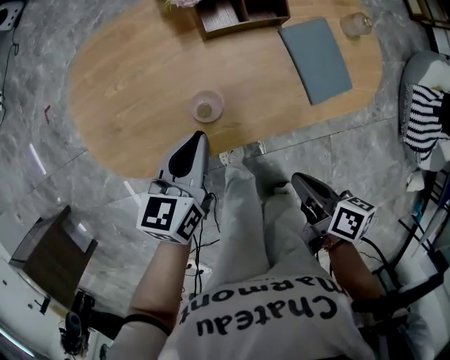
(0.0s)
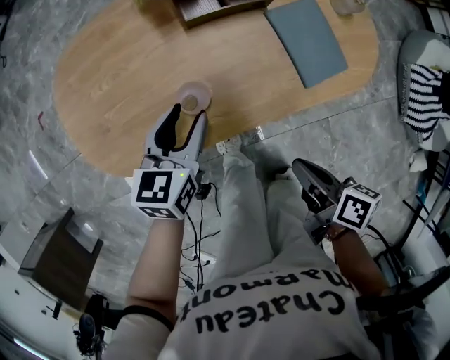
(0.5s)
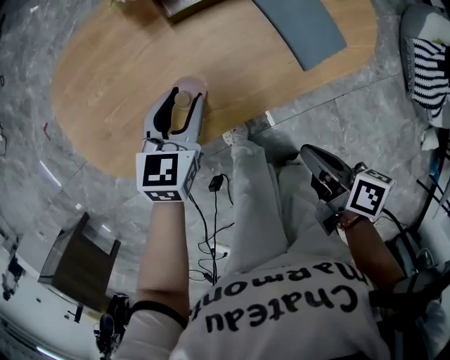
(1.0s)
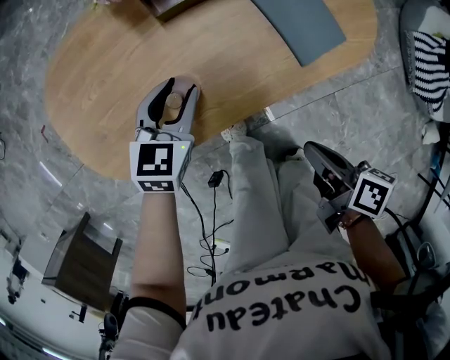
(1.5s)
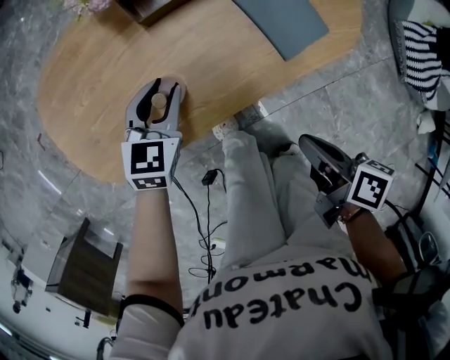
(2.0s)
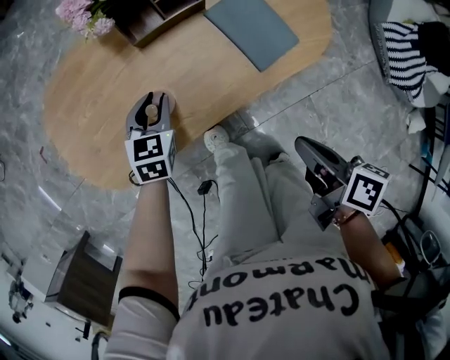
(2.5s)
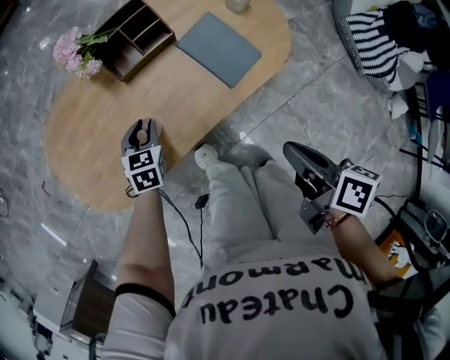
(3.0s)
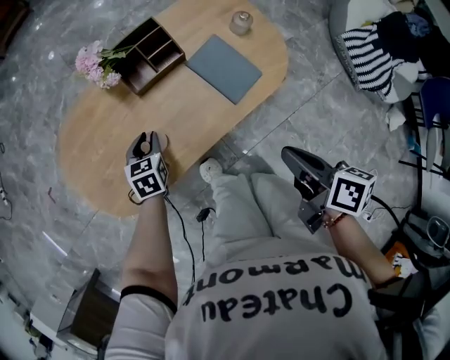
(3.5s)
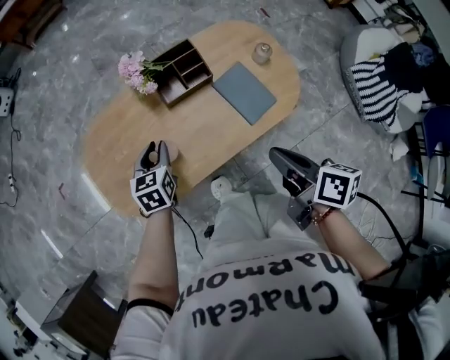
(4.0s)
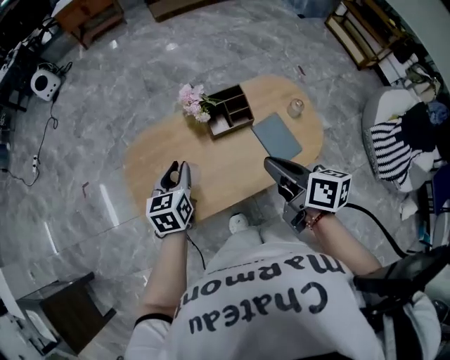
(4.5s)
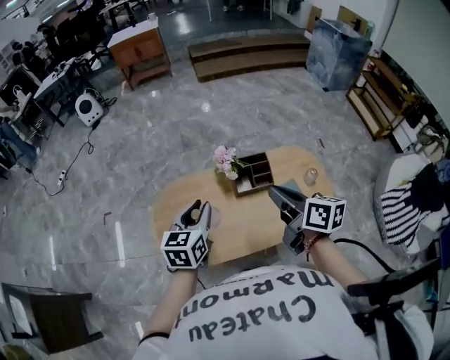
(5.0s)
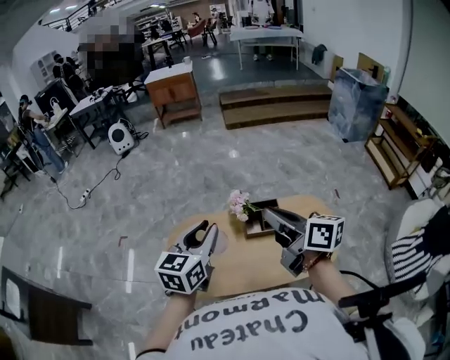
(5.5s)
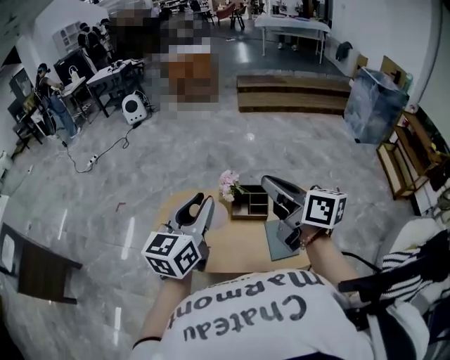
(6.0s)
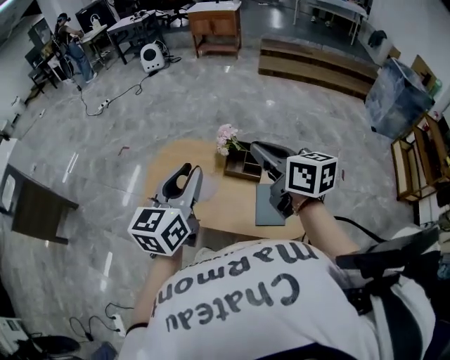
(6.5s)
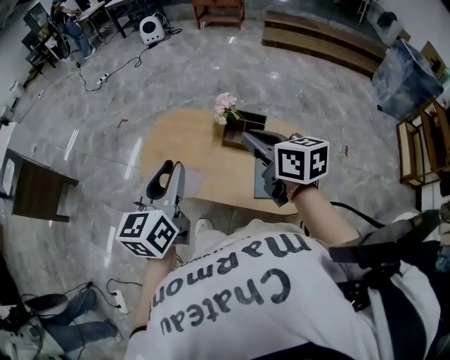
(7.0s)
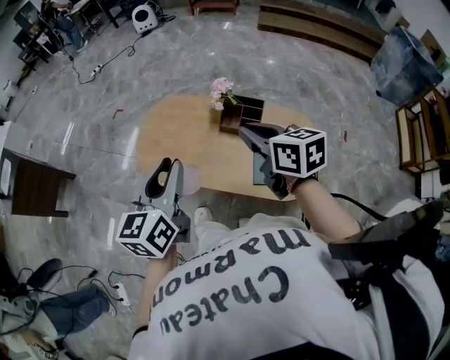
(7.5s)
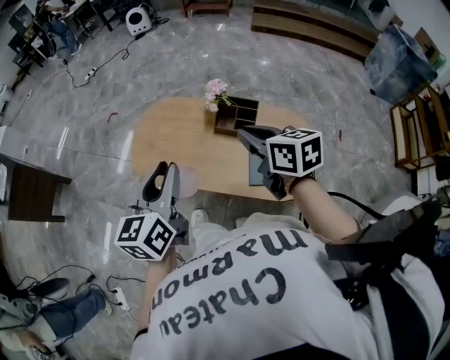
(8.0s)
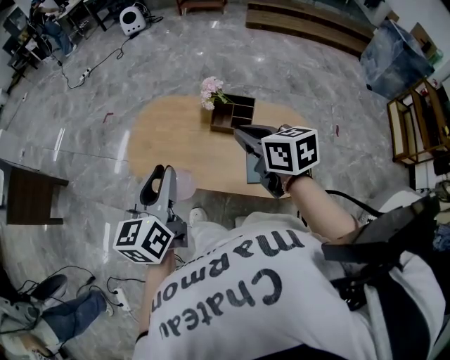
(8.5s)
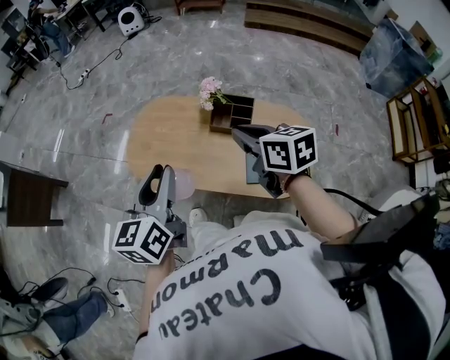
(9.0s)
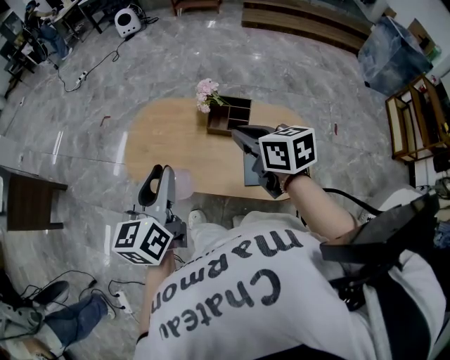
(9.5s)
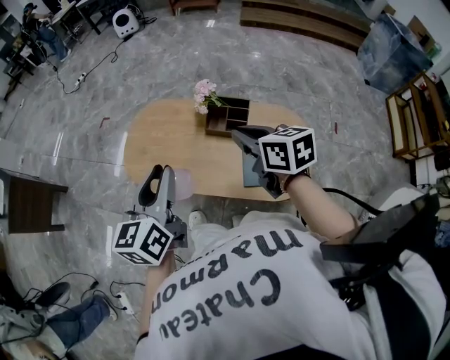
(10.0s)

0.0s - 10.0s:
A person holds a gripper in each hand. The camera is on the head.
0.0s - 2.0s: The left gripper travels downward and forward by roughly 10 cm, turns by about 30 degrees, and opens its fingers.
2.0s - 4.0s: The right gripper shifts approximately 20 cm upward, while the left gripper goes about 15 cm upward and to the left, and changes its angle by approximately 20 degrees.
4.0s - 6.0s: The left gripper heads upward, covering some 40 cm, and points its fingers some 40 degrees further upward. Meanwhile the right gripper moves upward and forward, approximately 30 cm, and swivels some 50 degrees.
6.0s - 8.0s: The left gripper moves backward and downward, approximately 15 cm, and rotates some 30 degrees. Meanwhile the right gripper is displaced downward and backward by some 15 cm, and changes its angle by about 30 degrees.
8.0s - 10.0s: The grippers move only a little.

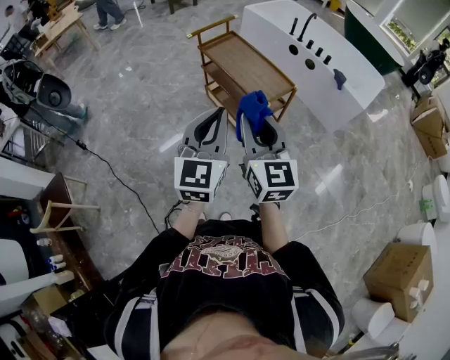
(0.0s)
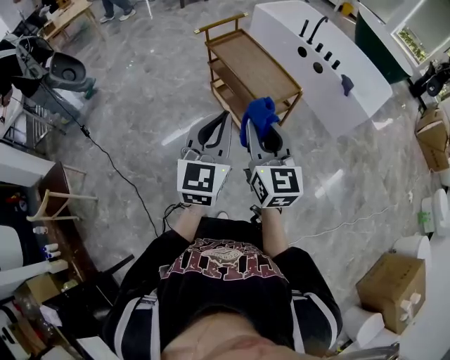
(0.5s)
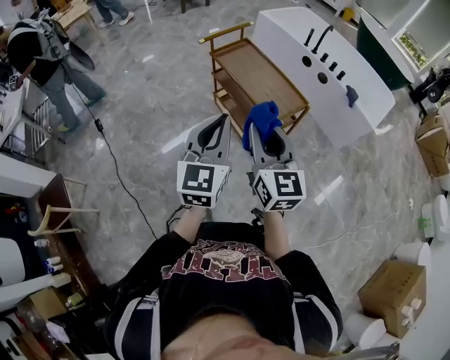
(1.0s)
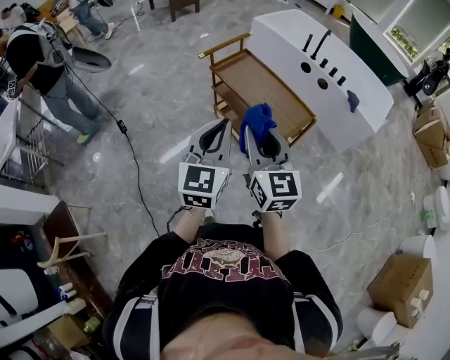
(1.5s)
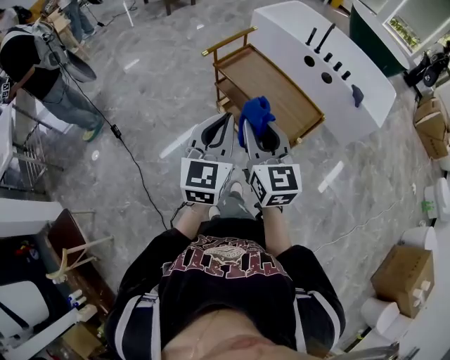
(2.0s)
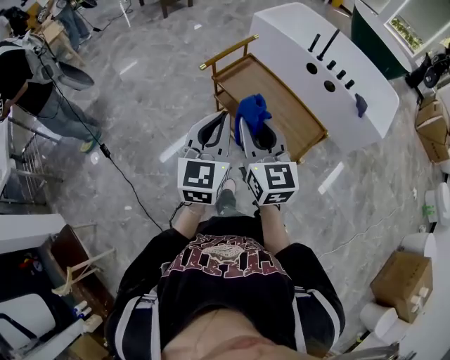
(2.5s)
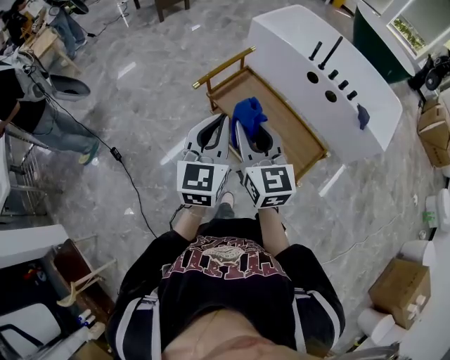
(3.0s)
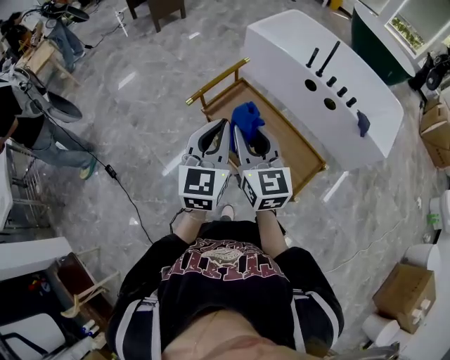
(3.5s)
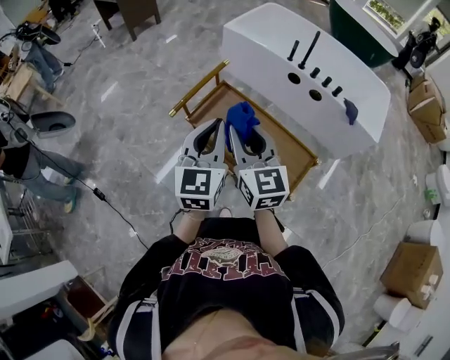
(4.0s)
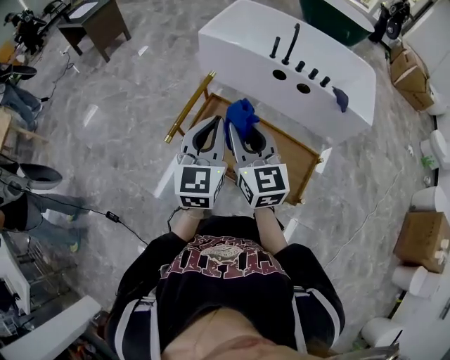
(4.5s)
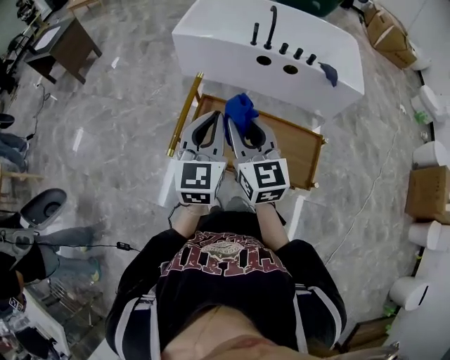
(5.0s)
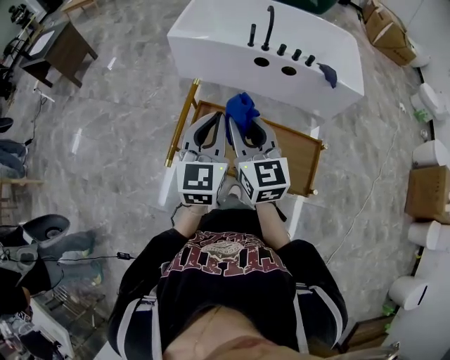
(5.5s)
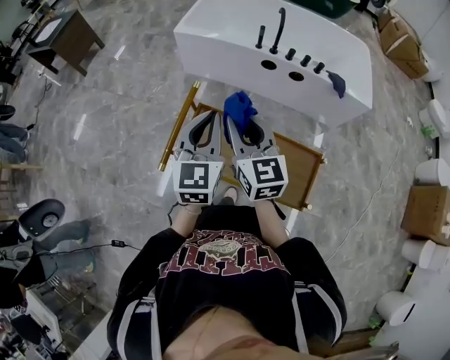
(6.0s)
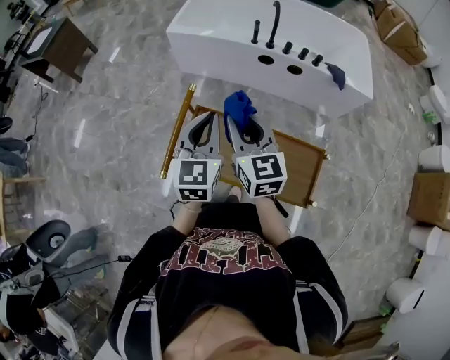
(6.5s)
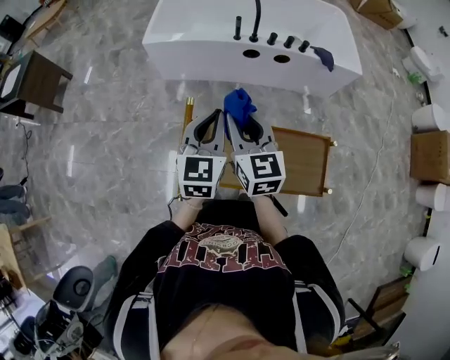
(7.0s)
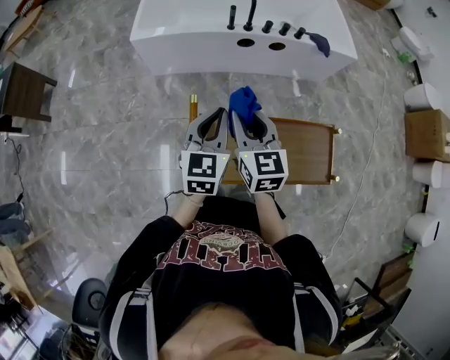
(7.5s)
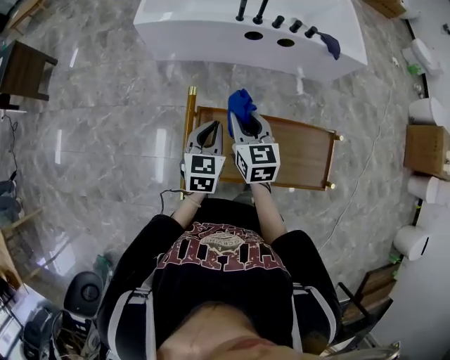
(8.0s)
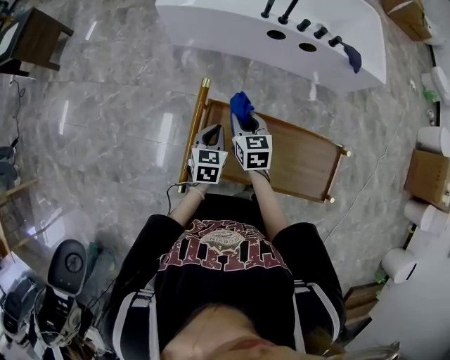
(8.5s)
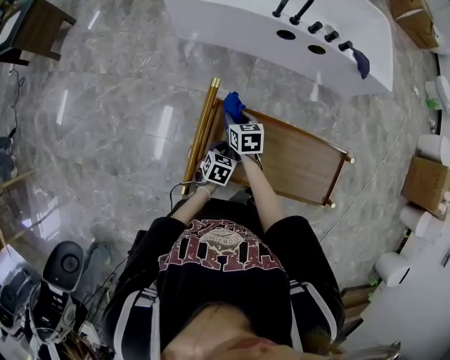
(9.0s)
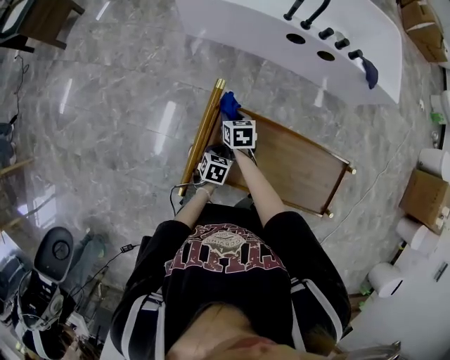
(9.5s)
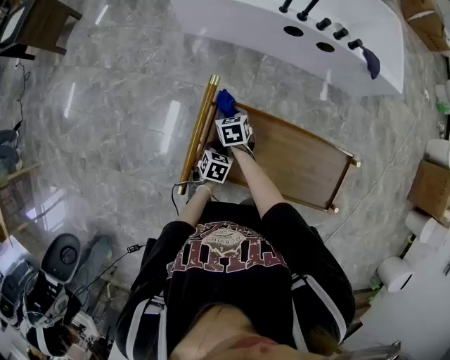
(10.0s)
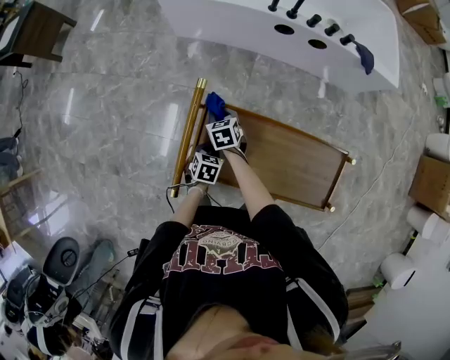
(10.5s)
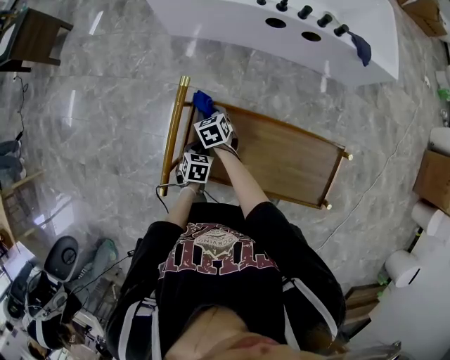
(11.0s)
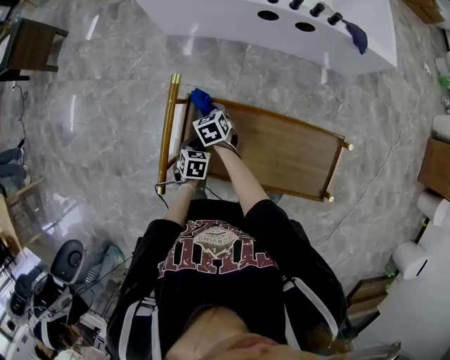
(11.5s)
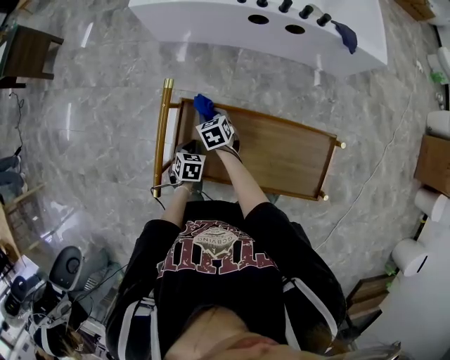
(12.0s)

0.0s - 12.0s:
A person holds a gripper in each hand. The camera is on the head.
0.0s - 2.0s: Both grippers travel together forward and to the left, roughly 30 cm.
2.0s - 4.0s: Both grippers travel together forward, some 35 cm.
4.0s - 6.0s: Both grippers move forward, roughly 25 cm.
6.0s - 8.0s: Both grippers travel together downward and forward, approximately 20 cm. The right gripper turns by about 30 degrees; the left gripper turns by some 30 degrees.
8.0s - 10.0s: The two grippers go roughly 25 cm downward. The right gripper swivels some 30 degrees. The left gripper turns by some 30 degrees.
10.0s - 12.0s: The right gripper is displaced to the right by about 5 cm.

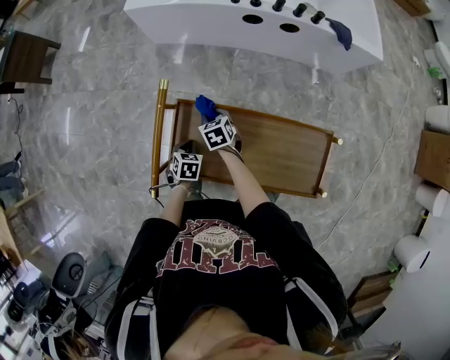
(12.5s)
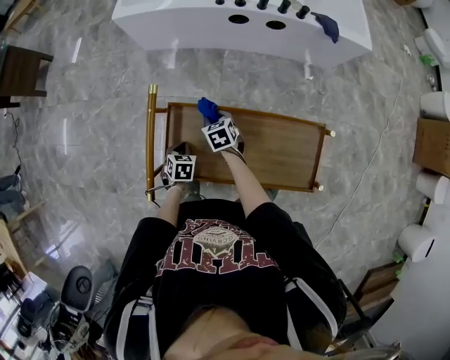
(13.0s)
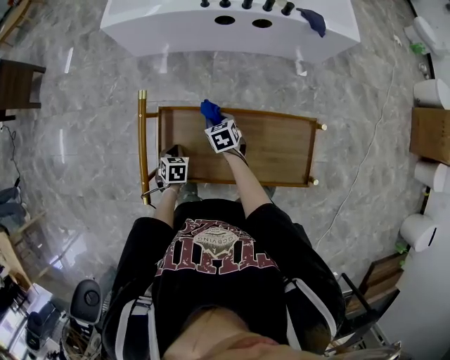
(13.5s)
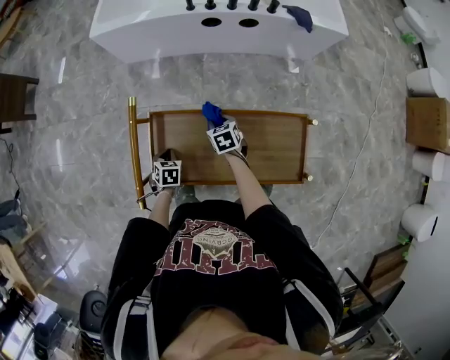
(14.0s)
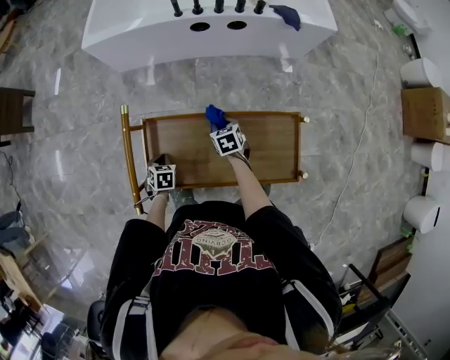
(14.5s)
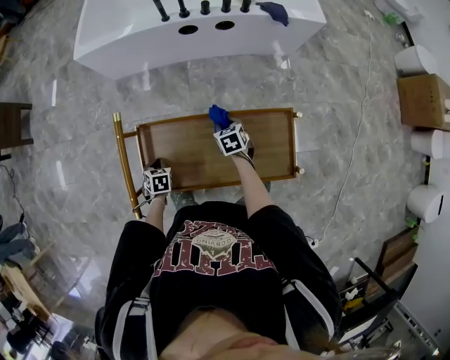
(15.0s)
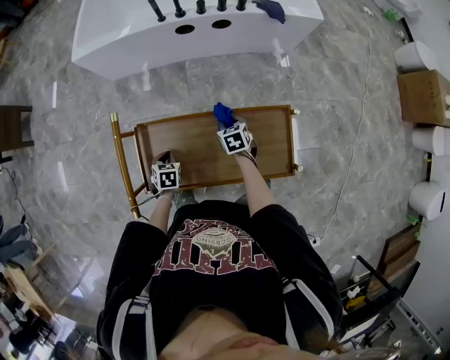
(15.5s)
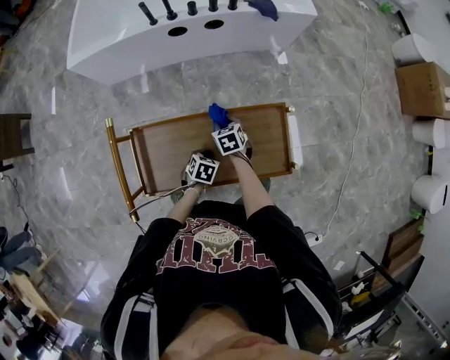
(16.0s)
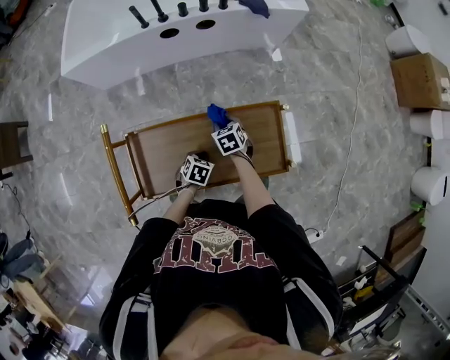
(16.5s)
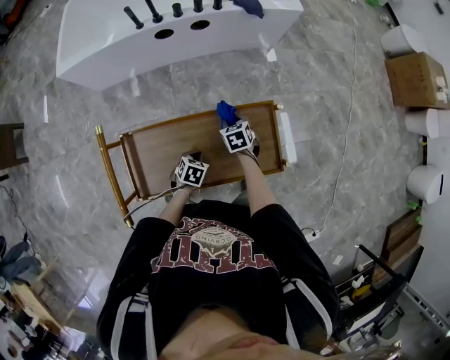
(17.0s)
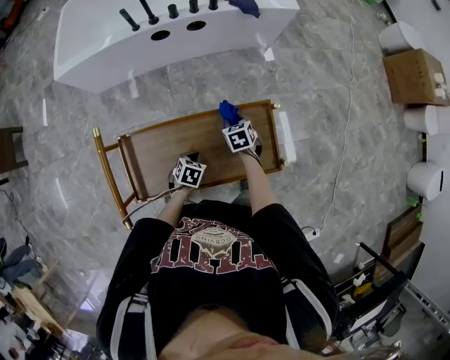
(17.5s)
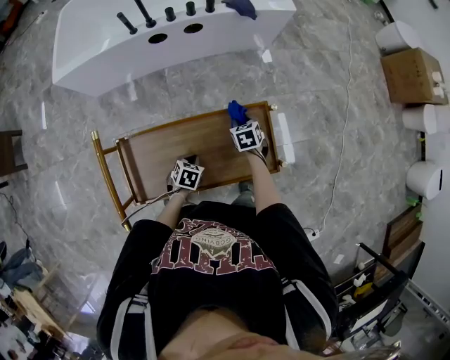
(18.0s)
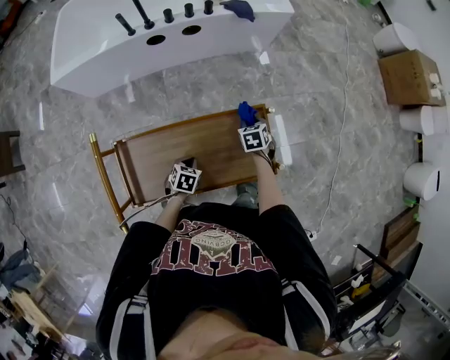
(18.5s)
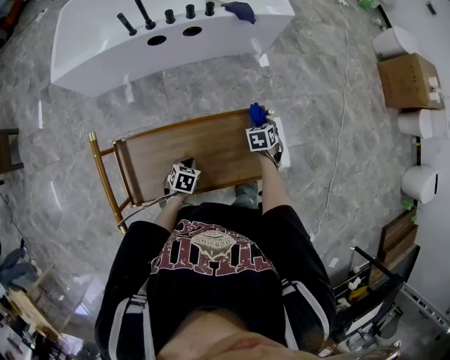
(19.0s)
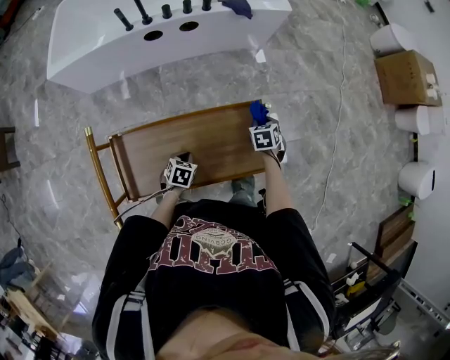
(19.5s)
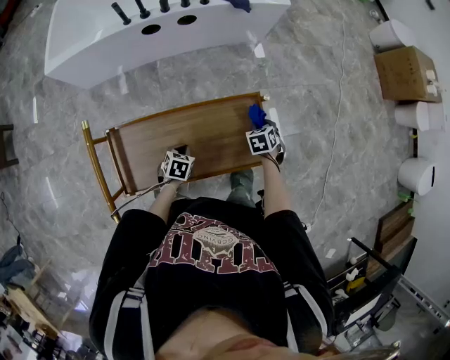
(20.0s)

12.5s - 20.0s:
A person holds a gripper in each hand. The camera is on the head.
12.5s - 14.5s: The right gripper travels to the right and backward by about 20 cm.
14.5s - 16.5s: The right gripper changes place by approximately 10 cm. The left gripper shifts by some 25 cm, and turns by roughly 30 degrees.
16.5s - 18.0s: The right gripper heads to the right, covering approximately 10 cm.
18.0s - 20.0s: The right gripper shifts about 10 cm to the right.
